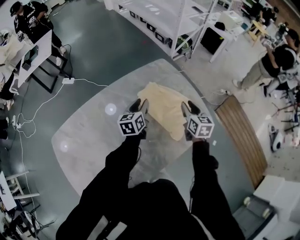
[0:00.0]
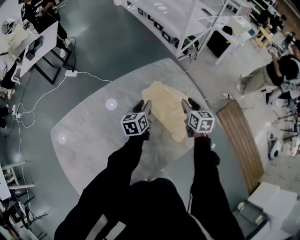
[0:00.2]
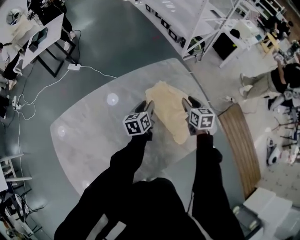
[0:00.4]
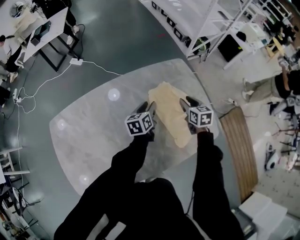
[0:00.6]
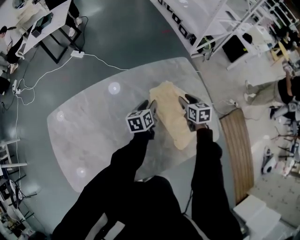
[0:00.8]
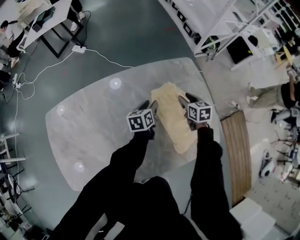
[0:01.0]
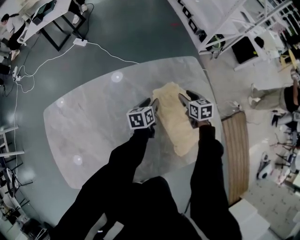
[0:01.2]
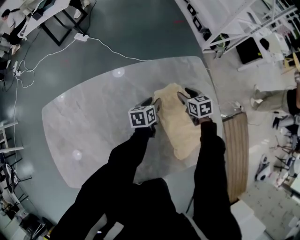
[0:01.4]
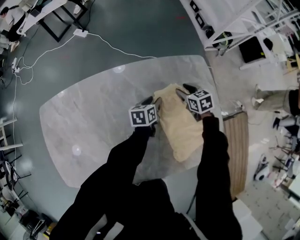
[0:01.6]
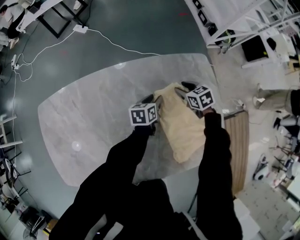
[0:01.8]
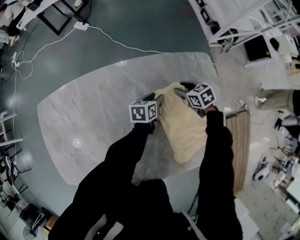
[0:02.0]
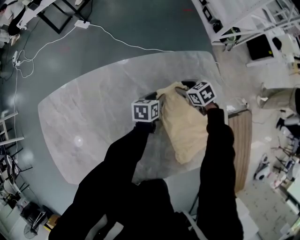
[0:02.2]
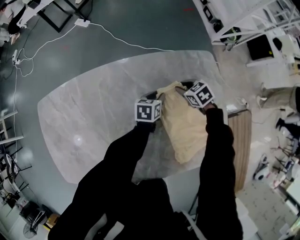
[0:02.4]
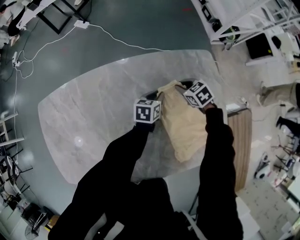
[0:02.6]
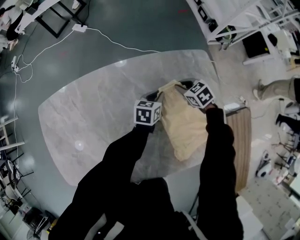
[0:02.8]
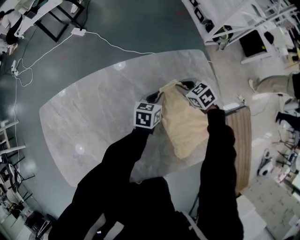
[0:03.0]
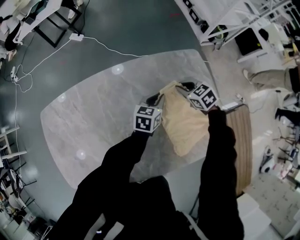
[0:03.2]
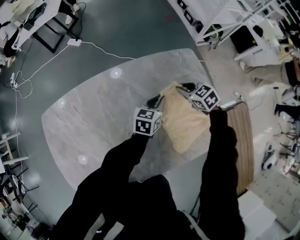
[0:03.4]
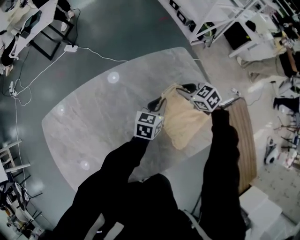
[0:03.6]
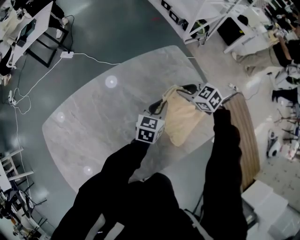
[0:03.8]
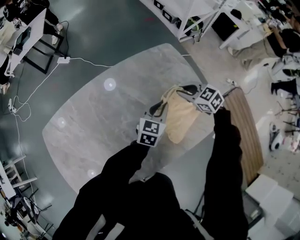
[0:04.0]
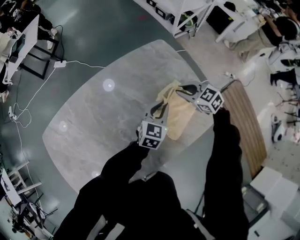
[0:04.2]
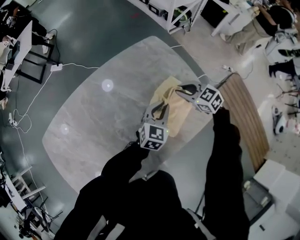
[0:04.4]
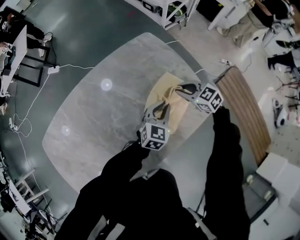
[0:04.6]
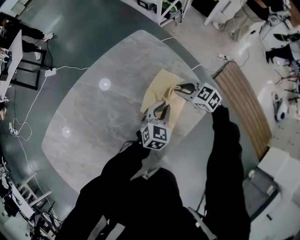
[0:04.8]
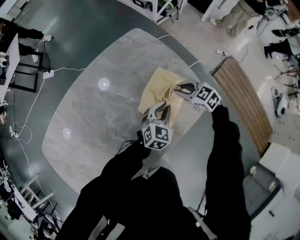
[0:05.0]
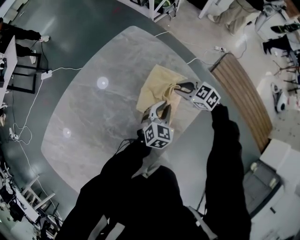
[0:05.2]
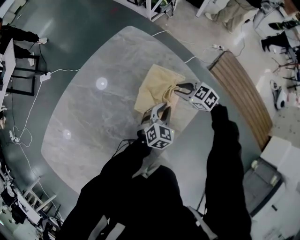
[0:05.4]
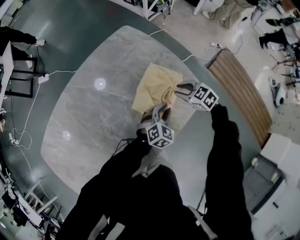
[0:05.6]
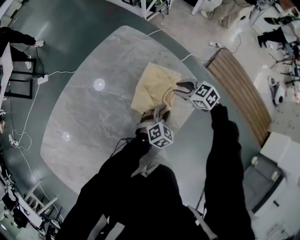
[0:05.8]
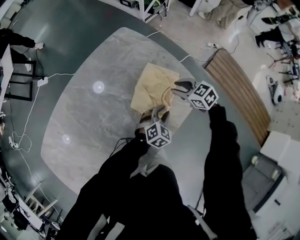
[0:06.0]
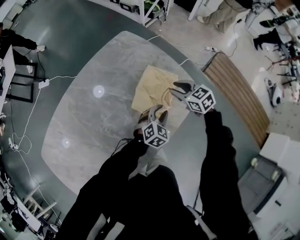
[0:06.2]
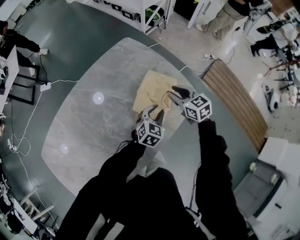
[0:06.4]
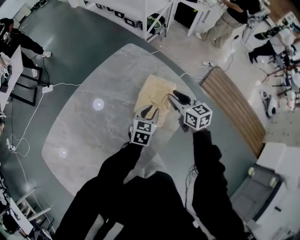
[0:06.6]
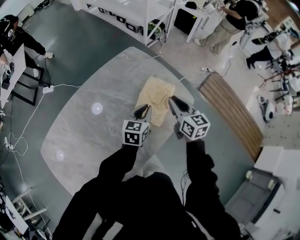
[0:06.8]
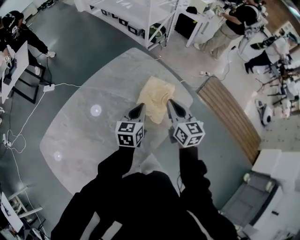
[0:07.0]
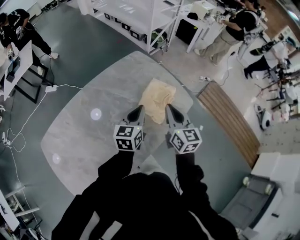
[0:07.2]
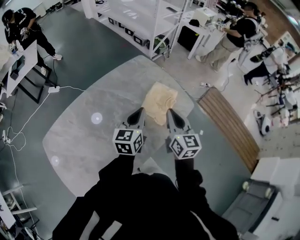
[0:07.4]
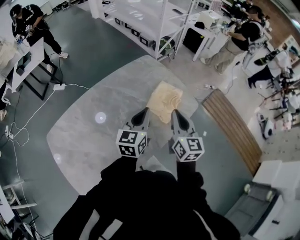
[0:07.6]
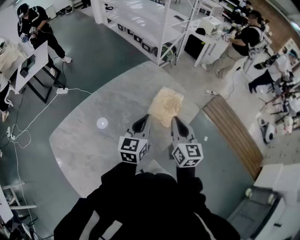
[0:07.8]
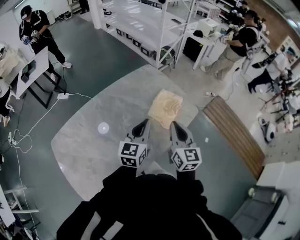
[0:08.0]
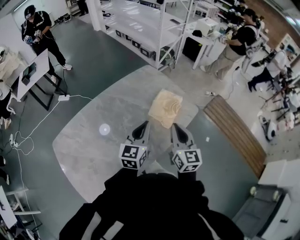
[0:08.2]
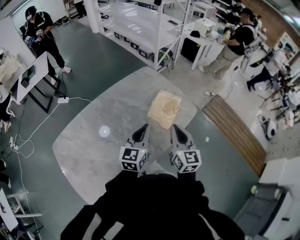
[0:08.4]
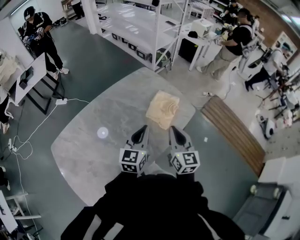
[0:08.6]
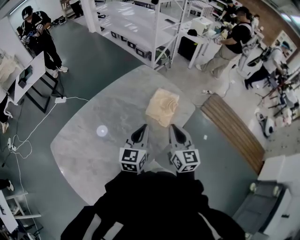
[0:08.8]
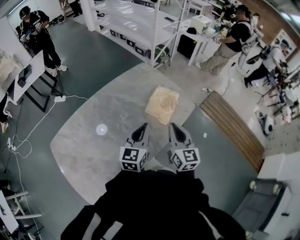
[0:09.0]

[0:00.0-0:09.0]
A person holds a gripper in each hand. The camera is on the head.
0.0 to 1.6 s: The right gripper heads forward, downward and to the left, covering some 35 cm, and swivels roughly 50 degrees. Meanwhile the left gripper heads downward and forward, covering approximately 20 cm, and rotates approximately 30 degrees.
1.6 to 3.0 s: The left gripper closes its fingers. The right gripper closes.
3.0 to 4.4 s: The grippers both shift backward, to the right and upward by about 25 cm. The left gripper swivels some 40 degrees. Meanwhile the right gripper swivels approximately 20 degrees.
4.4 to 6.0 s: The right gripper moves backward, to the right and downward, some 10 cm. Meanwhile the left gripper moves backward, downward and to the right, approximately 20 cm, and turns by approximately 30 degrees.
6.0 to 7.6 s: The left gripper shifts some 35 cm upward and to the left, angles its fingers upward, by some 30 degrees, and closes its fingers. The right gripper travels upward and backward by some 35 cm, points its fingers approximately 30 degrees further upward, and closes up.
7.6 to 9.0 s: Both grippers travel together backward, roughly 10 cm.

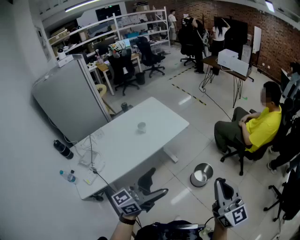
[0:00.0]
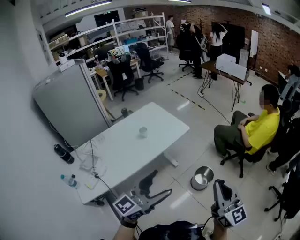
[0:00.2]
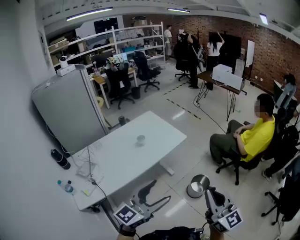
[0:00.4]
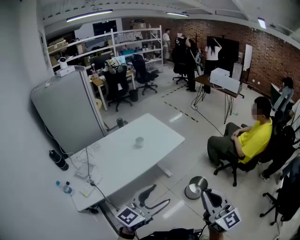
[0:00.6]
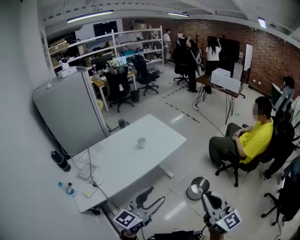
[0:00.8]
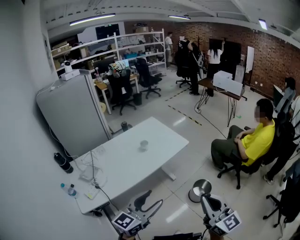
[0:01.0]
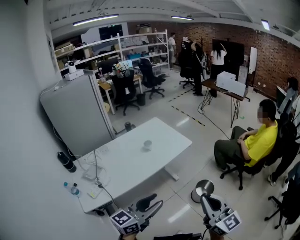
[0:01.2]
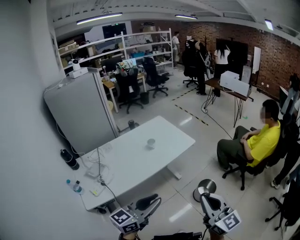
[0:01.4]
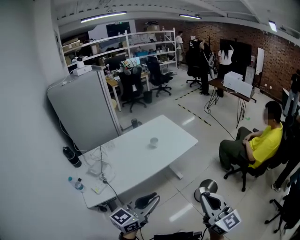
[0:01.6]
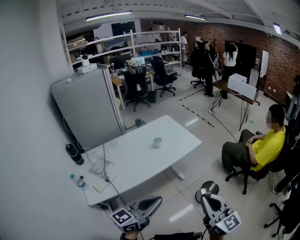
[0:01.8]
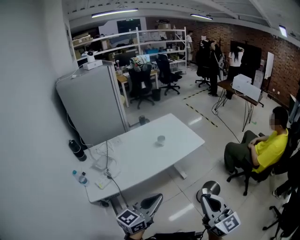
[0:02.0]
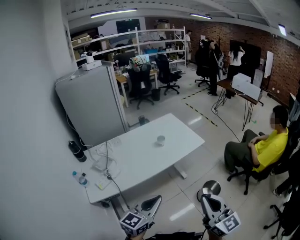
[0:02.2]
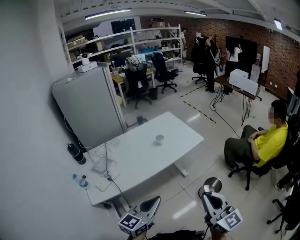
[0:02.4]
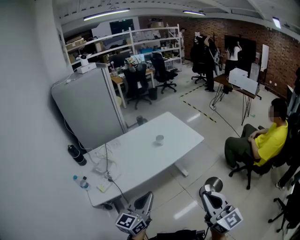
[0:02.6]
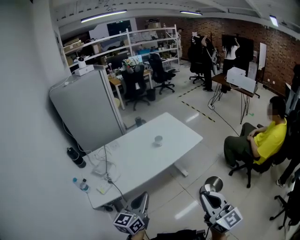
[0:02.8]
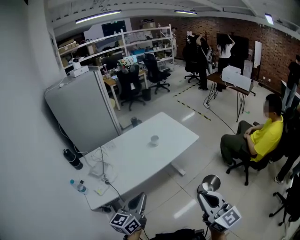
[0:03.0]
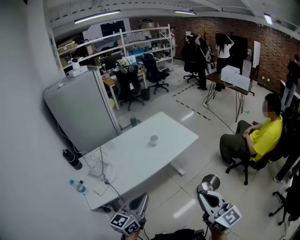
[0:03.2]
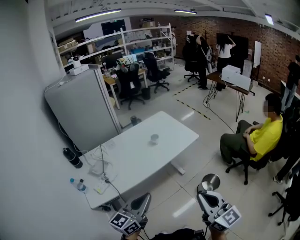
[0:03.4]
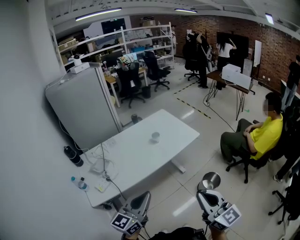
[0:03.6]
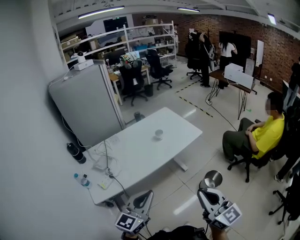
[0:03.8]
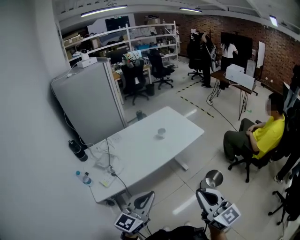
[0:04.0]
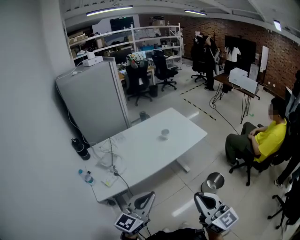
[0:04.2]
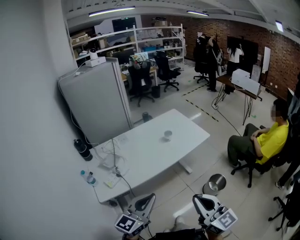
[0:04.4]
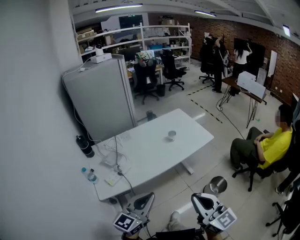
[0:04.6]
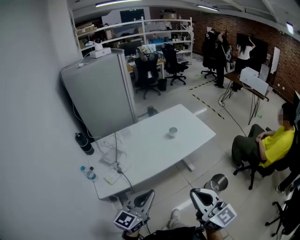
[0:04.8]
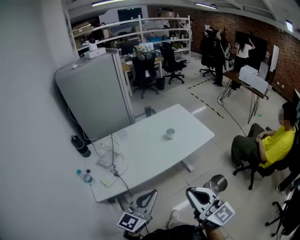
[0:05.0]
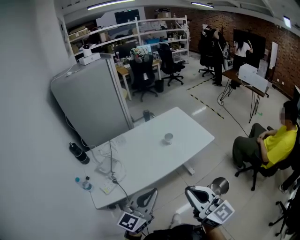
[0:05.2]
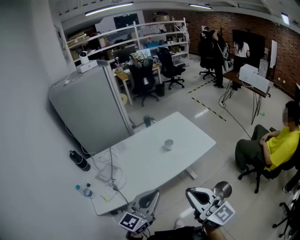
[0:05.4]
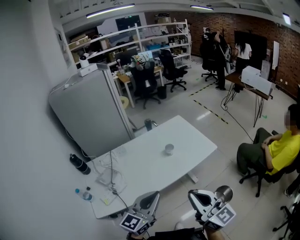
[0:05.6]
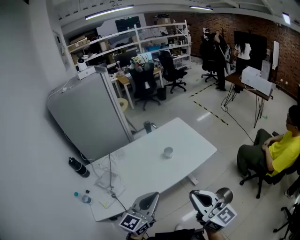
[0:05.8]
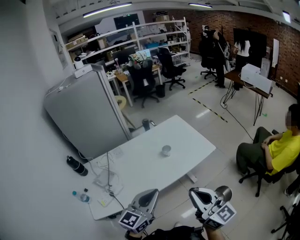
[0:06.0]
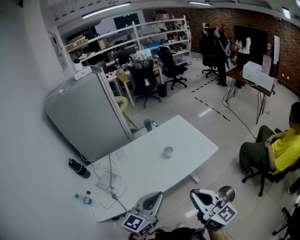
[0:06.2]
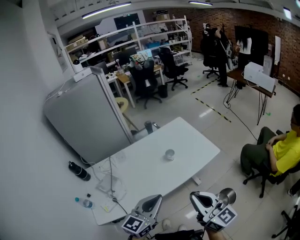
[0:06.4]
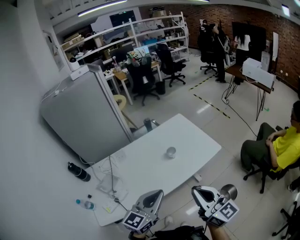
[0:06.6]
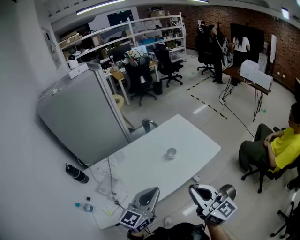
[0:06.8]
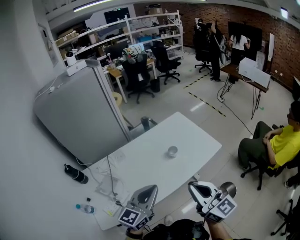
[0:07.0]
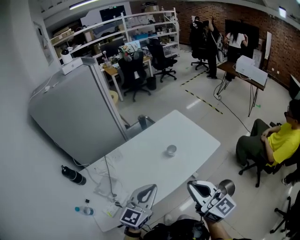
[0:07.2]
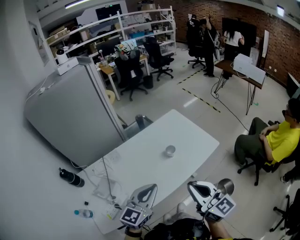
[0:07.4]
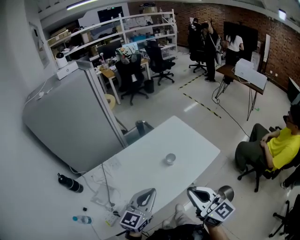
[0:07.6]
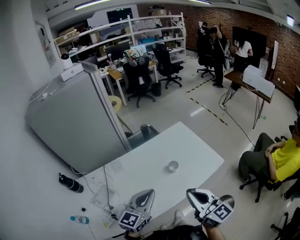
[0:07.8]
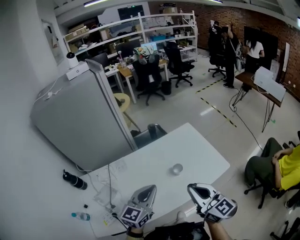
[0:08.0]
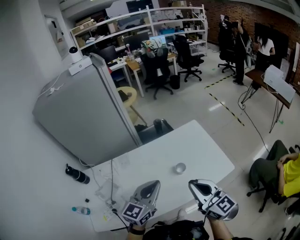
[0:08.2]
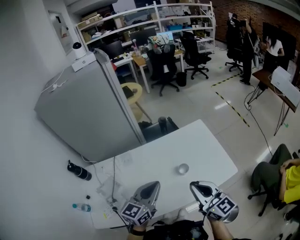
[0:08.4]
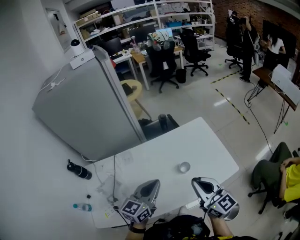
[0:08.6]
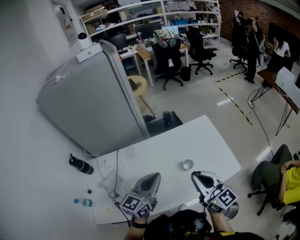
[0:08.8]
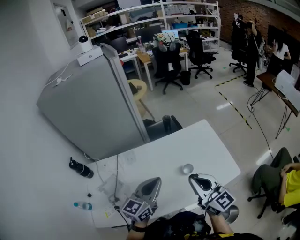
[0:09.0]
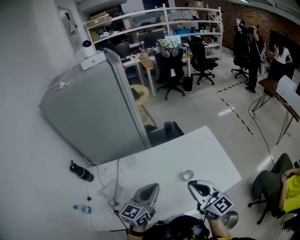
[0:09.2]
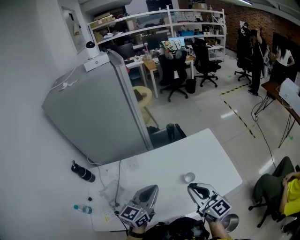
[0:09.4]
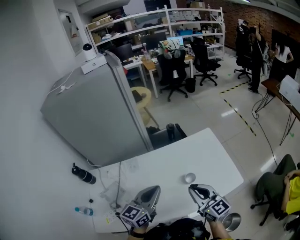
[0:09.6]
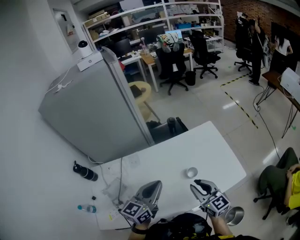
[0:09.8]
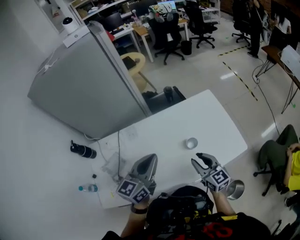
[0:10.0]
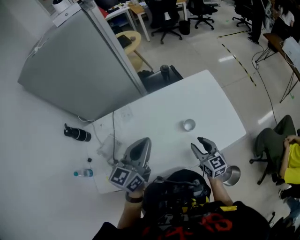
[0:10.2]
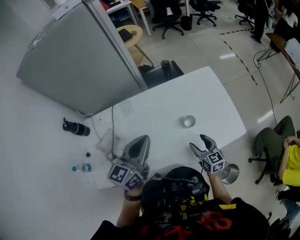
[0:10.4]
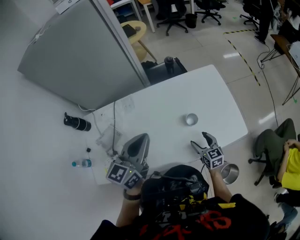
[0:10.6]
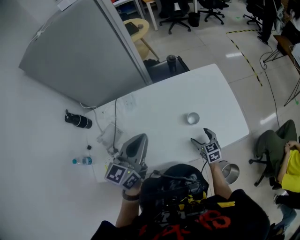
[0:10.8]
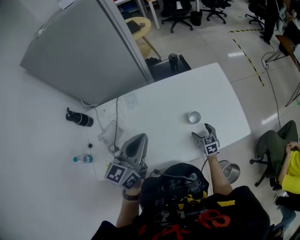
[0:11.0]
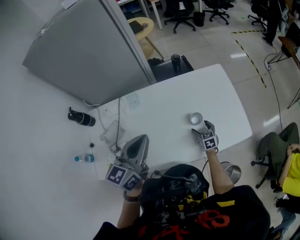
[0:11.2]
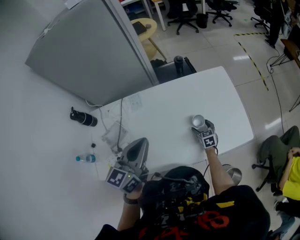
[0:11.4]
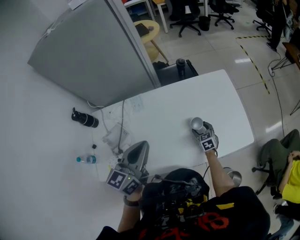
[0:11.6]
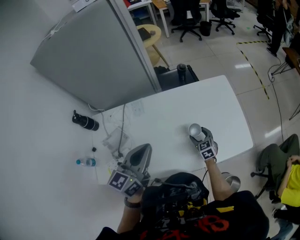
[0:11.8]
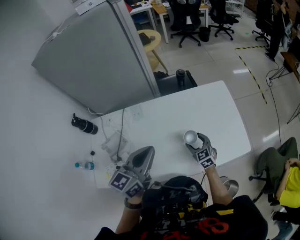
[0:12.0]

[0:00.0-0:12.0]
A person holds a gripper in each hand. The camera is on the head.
0.0 to 1.6 s: Both grippers move to the left and backward, about 15 cm. The left gripper rotates approximately 20 degrees, and closes its fingers.
1.6 to 3.0 s: The left gripper shifts approximately 5 cm to the left, and rotates approximately 20 degrees.
3.0 to 4.4 s: The right gripper is displaced to the left by about 10 cm; the left gripper travels backward by some 5 cm.
4.4 to 6.0 s: The right gripper is displaced forward by roughly 20 cm, while the left gripper moves forward and to the right, about 25 cm.
6.0 to 7.6 s: Both grippers travel together forward and to the left, some 15 cm.
7.6 to 9.0 s: Both grippers travel together forward, about 15 cm.
9.0 to 10.4 s: The right gripper goes approximately 25 cm downward, swivels about 30 degrees, and opens.
10.4 to 12.0 s: The right gripper travels forward and to the left by some 10 cm, moves roughly 15 cm downward and comes back, and swivels roughly 30 degrees.

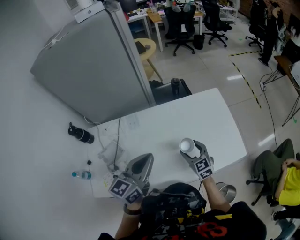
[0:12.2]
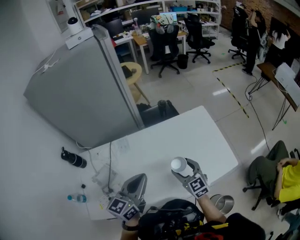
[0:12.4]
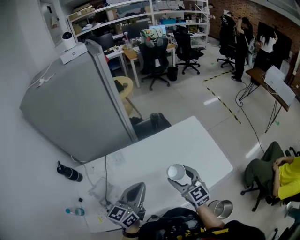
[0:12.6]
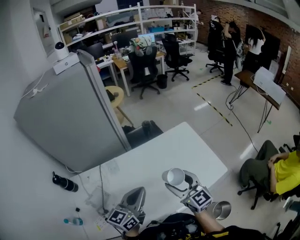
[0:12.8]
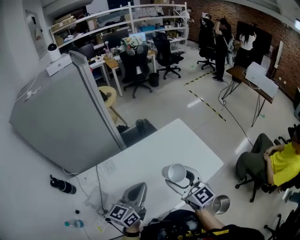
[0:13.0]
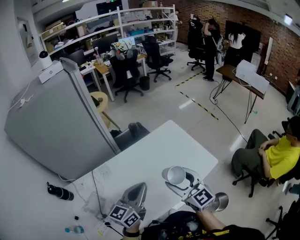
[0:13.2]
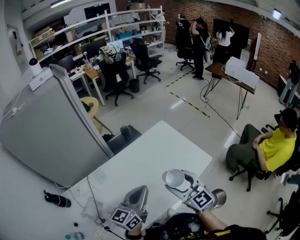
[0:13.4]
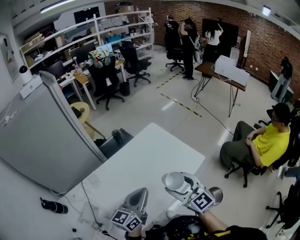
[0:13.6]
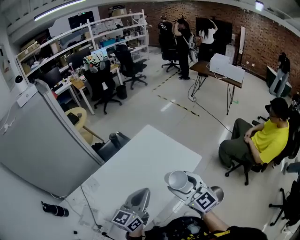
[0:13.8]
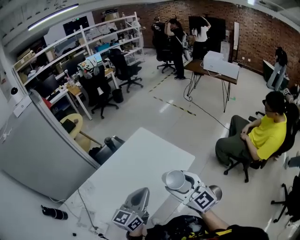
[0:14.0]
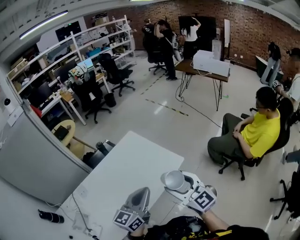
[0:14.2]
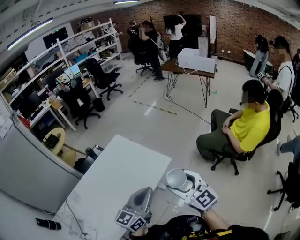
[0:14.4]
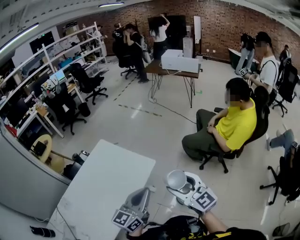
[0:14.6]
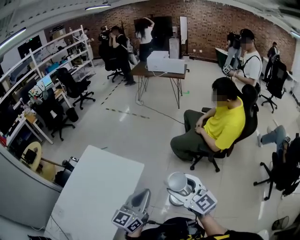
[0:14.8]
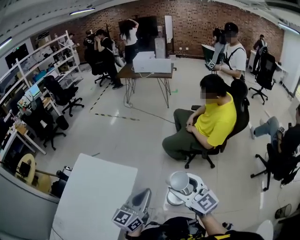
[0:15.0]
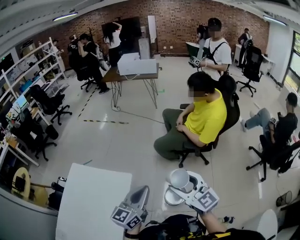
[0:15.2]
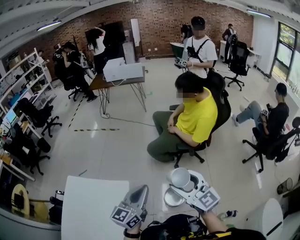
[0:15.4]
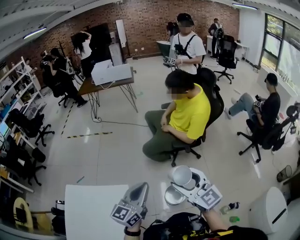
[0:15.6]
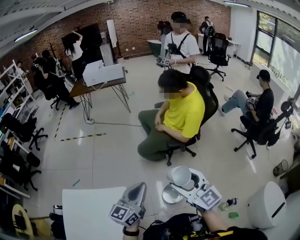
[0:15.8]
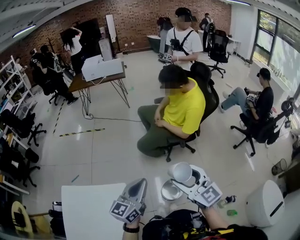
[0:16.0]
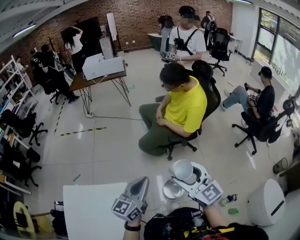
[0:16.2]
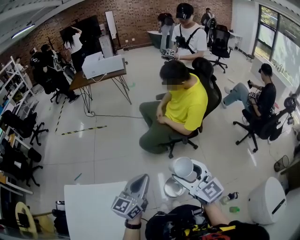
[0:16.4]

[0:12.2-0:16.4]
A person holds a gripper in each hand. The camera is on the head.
12.2 to 13.6 s: The left gripper moves to the right, some 10 cm, and changes its angle by about 30 degrees. Meanwhile the right gripper goes approximately 25 cm upward and backward, and swivels roughly 30 degrees.
13.6 to 15.0 s: The pair of grippers is taken roughly 40 cm. The right gripper rotates some 30 degrees; the left gripper turns by about 30 degrees.
15.0 to 16.4 s: The left gripper moves forward, some 15 cm, and rotates about 20 degrees. Meanwhile the right gripper is displaced forward by about 10 cm, and swivels roughly 20 degrees.
